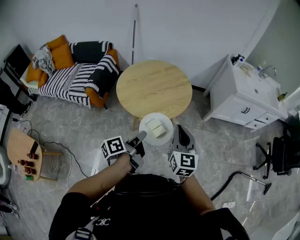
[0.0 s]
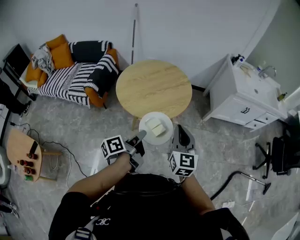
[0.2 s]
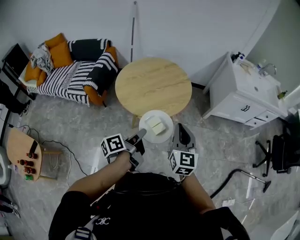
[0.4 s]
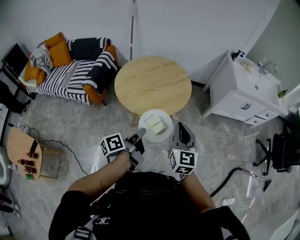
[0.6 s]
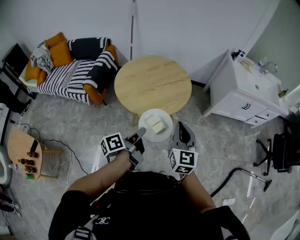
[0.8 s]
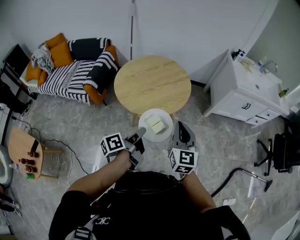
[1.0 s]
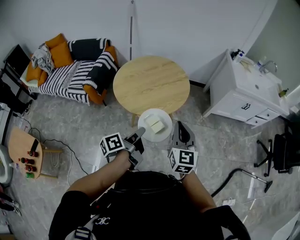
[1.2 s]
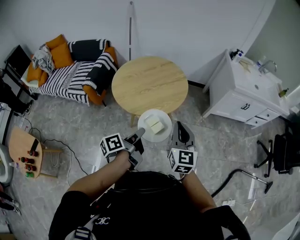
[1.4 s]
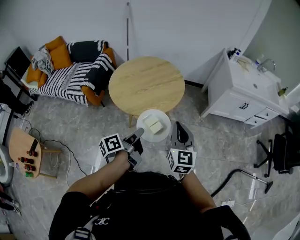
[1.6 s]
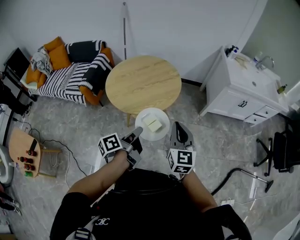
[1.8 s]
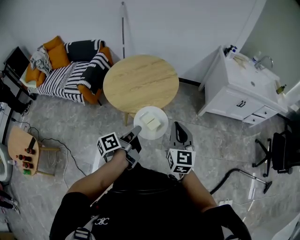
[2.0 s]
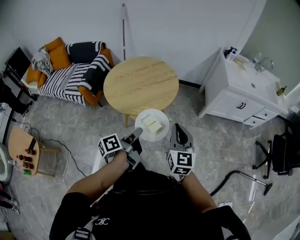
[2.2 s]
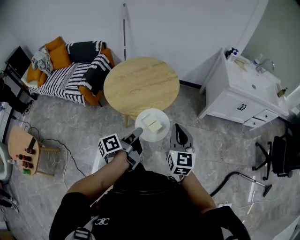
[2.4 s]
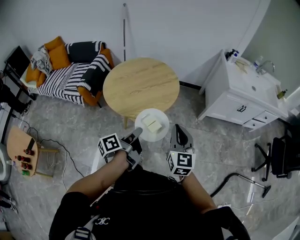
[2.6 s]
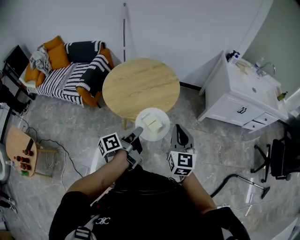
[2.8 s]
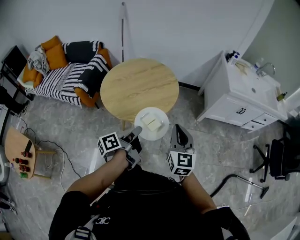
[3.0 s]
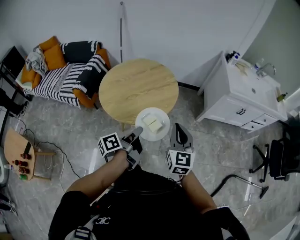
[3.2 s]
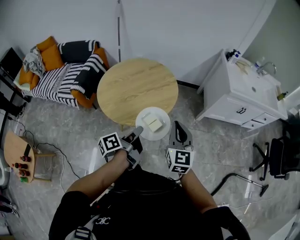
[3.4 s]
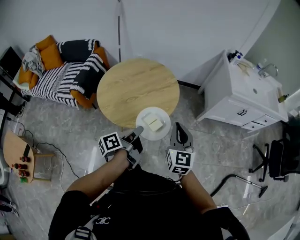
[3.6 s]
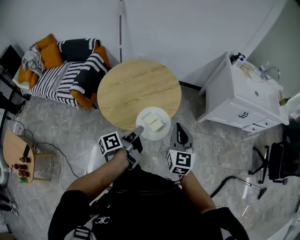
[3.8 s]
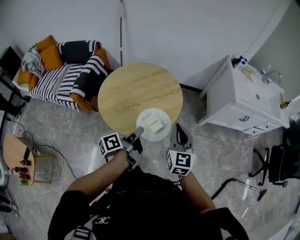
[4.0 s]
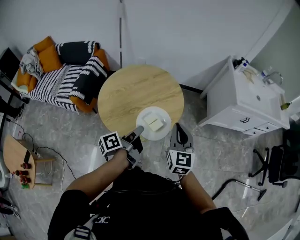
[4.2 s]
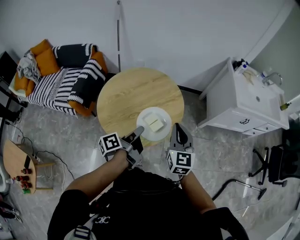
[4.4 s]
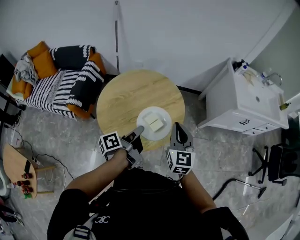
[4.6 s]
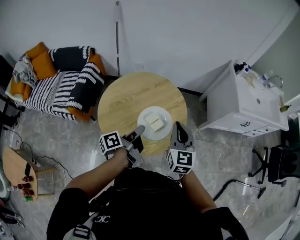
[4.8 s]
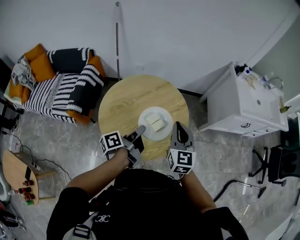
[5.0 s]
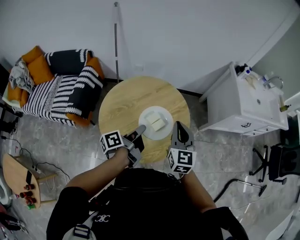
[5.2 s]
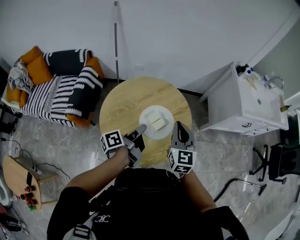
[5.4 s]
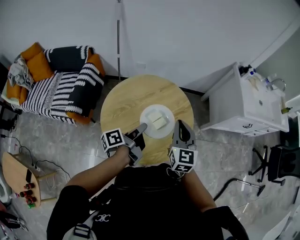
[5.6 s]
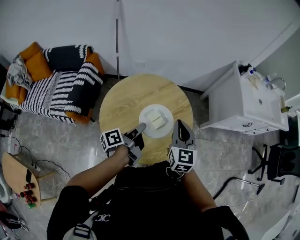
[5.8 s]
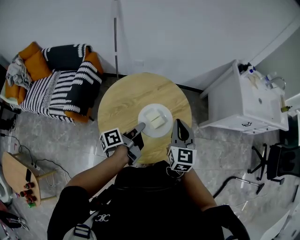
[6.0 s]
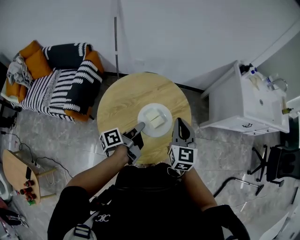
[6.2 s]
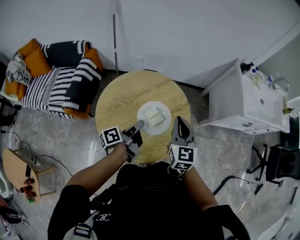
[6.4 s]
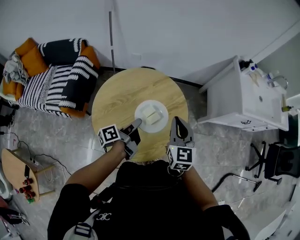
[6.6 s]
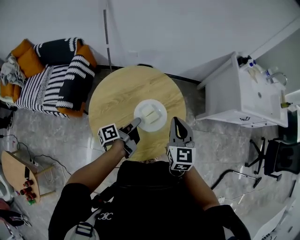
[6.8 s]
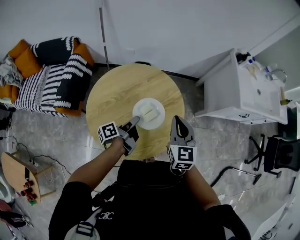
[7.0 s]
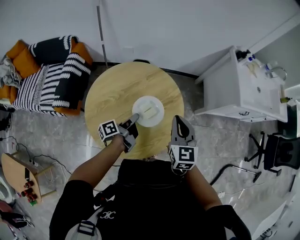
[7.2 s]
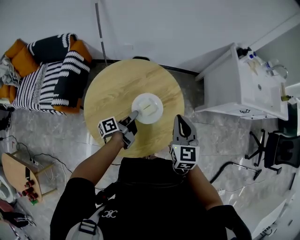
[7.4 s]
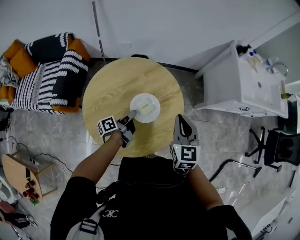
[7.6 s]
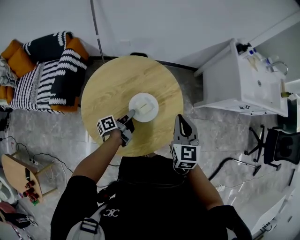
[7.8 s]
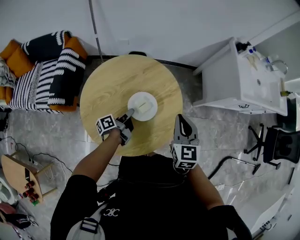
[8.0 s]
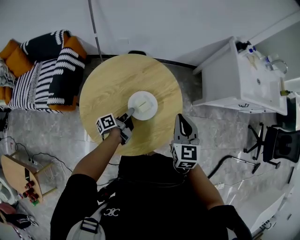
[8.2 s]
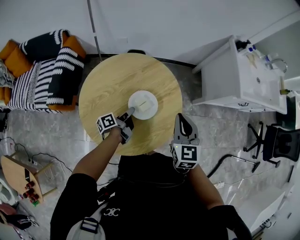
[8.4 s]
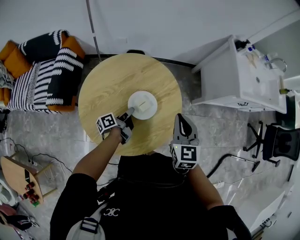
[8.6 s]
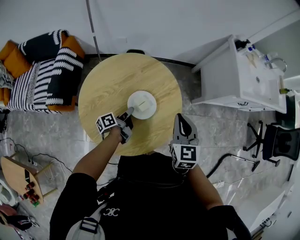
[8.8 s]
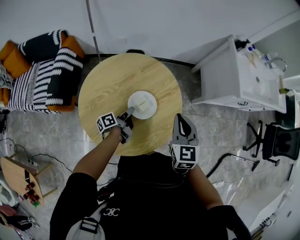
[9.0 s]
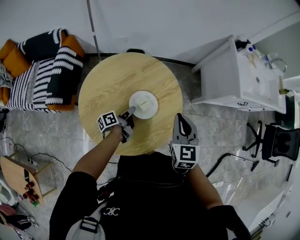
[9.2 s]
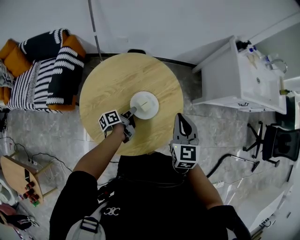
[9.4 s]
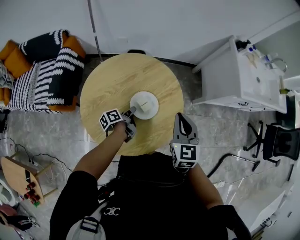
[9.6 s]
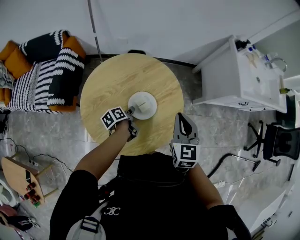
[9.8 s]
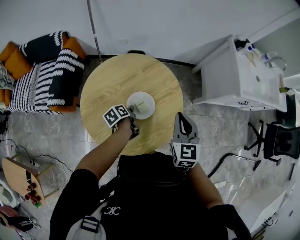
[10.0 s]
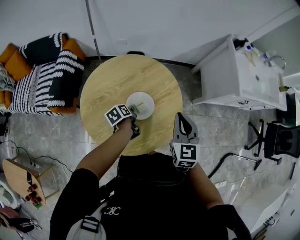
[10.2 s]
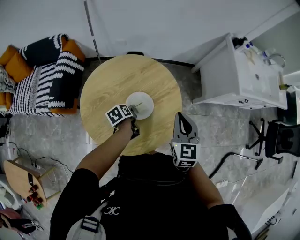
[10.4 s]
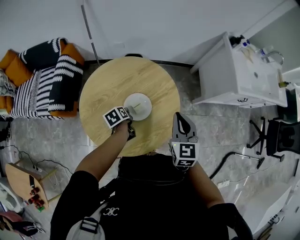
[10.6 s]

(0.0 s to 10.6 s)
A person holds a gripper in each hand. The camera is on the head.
0.0 s - 1.6 s: The right gripper shifts by roughly 5 cm.
1.6 s - 3.0 s: The right gripper moves approximately 5 cm.
3.0 s - 4.6 s: The right gripper shifts by about 20 cm.
4.6 s - 6.0 s: The right gripper changes place by about 10 cm.
6.0 s - 7.6 s: The right gripper moves approximately 5 cm.

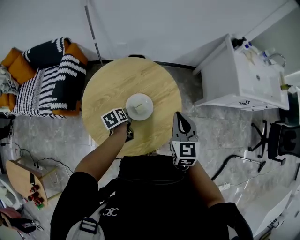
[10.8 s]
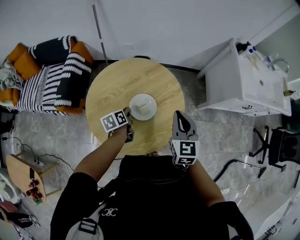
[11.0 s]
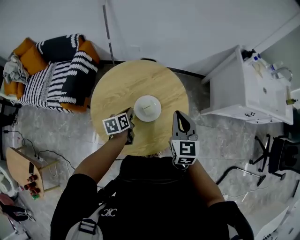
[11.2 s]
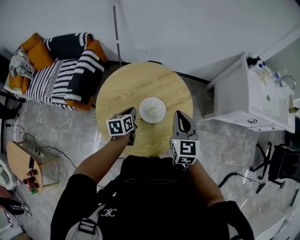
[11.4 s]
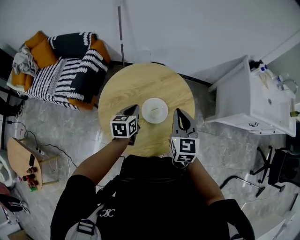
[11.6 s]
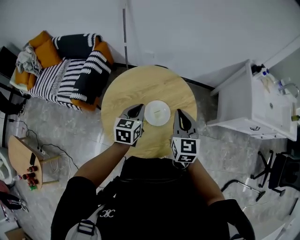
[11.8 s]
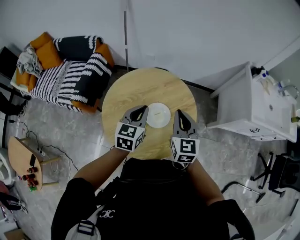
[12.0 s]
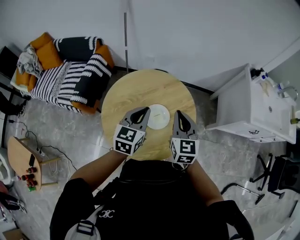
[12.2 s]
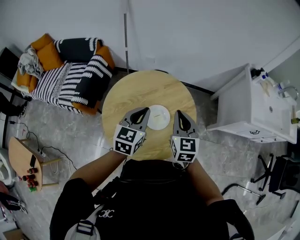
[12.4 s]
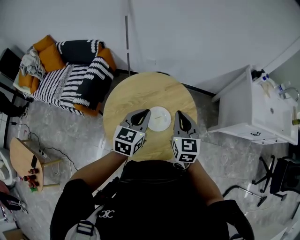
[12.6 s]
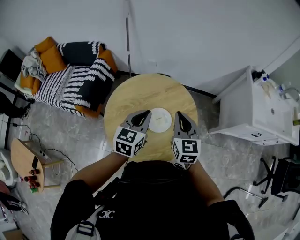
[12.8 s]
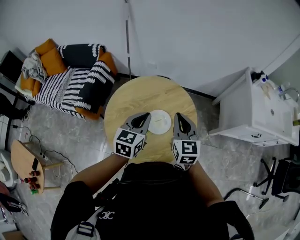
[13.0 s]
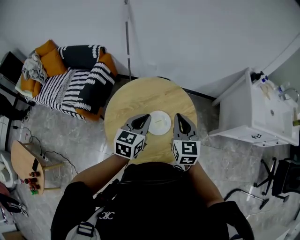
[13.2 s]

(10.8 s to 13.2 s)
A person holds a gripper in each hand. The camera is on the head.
10.8 s - 12.0 s: The right gripper changes place by about 10 cm.

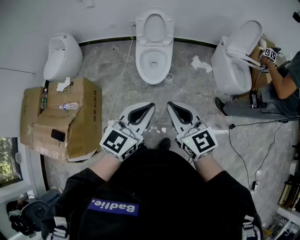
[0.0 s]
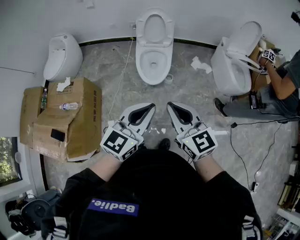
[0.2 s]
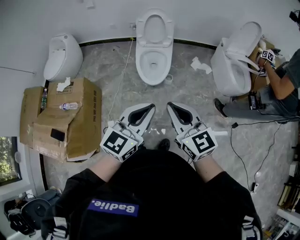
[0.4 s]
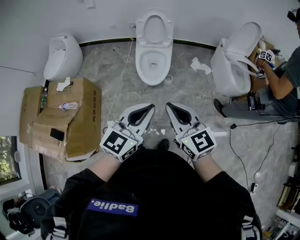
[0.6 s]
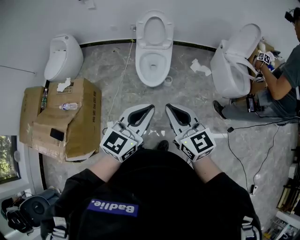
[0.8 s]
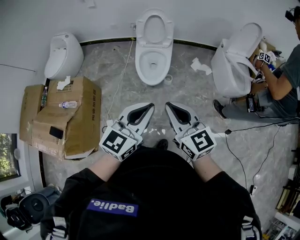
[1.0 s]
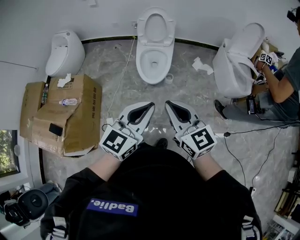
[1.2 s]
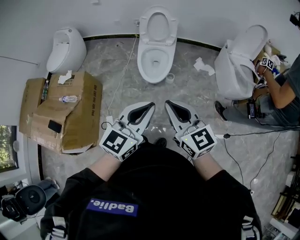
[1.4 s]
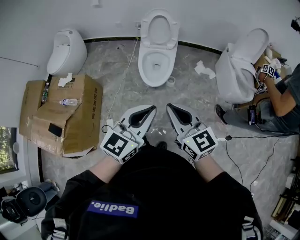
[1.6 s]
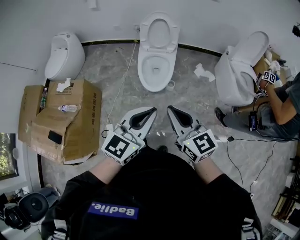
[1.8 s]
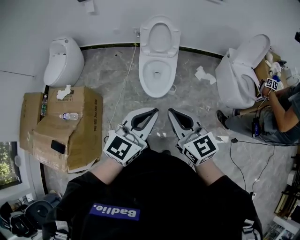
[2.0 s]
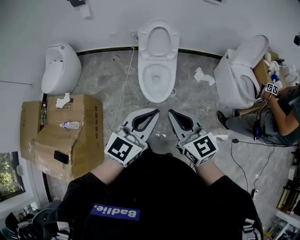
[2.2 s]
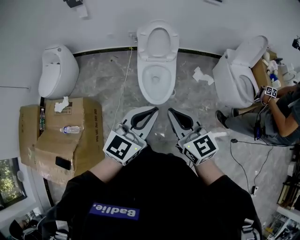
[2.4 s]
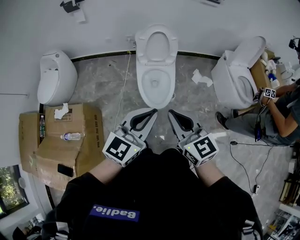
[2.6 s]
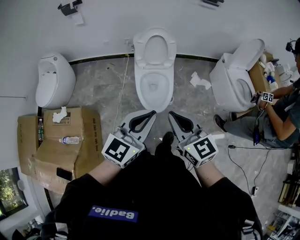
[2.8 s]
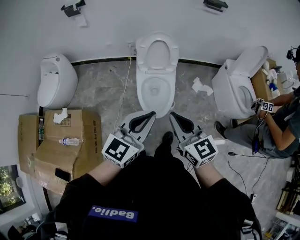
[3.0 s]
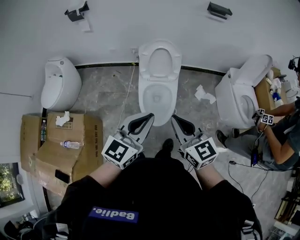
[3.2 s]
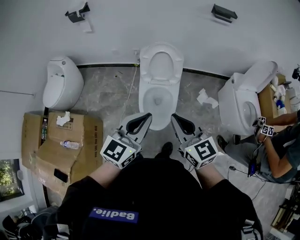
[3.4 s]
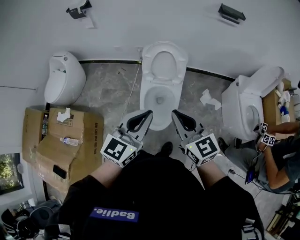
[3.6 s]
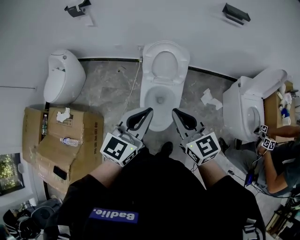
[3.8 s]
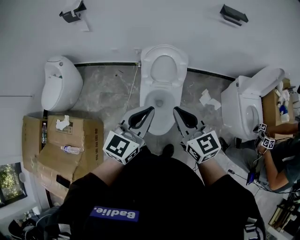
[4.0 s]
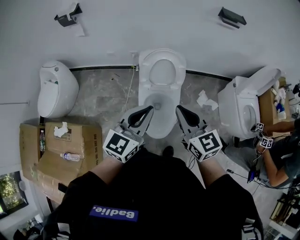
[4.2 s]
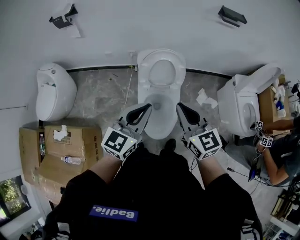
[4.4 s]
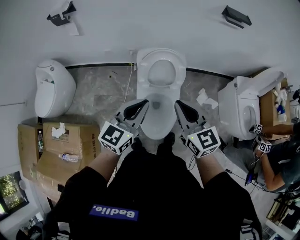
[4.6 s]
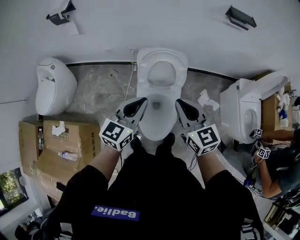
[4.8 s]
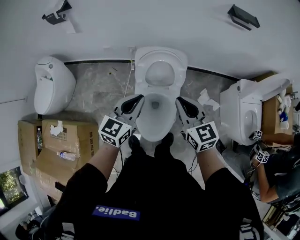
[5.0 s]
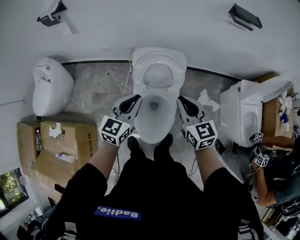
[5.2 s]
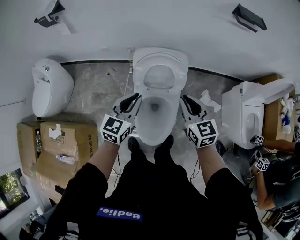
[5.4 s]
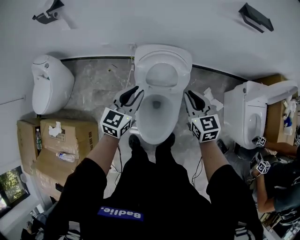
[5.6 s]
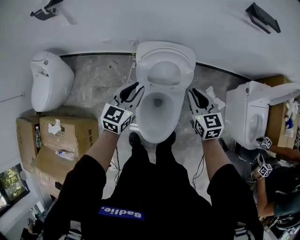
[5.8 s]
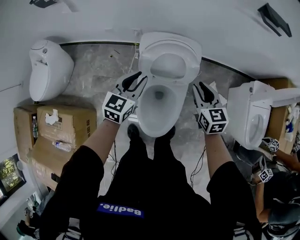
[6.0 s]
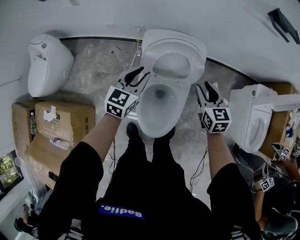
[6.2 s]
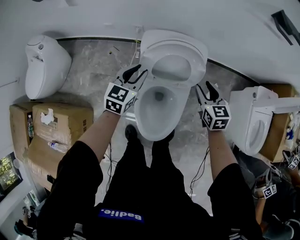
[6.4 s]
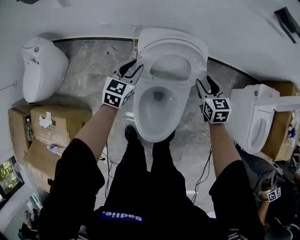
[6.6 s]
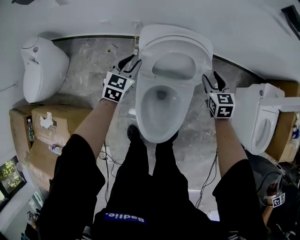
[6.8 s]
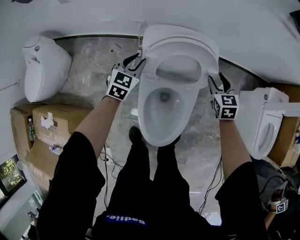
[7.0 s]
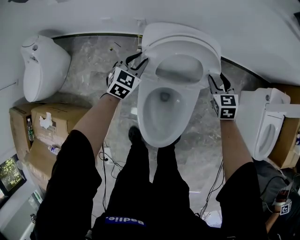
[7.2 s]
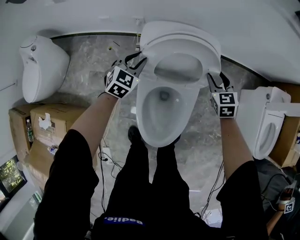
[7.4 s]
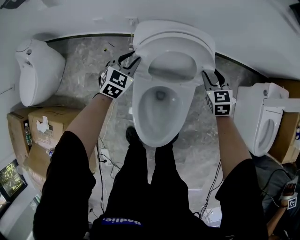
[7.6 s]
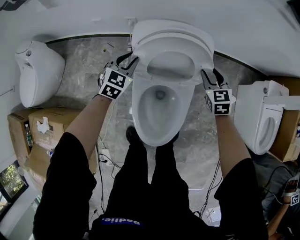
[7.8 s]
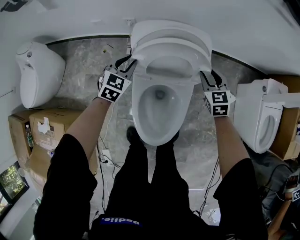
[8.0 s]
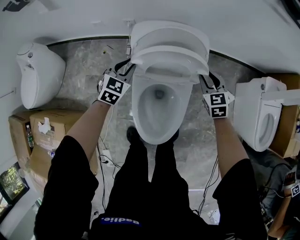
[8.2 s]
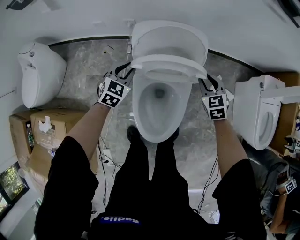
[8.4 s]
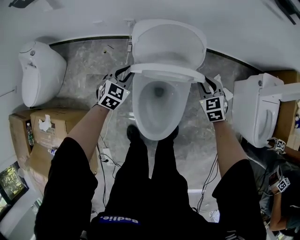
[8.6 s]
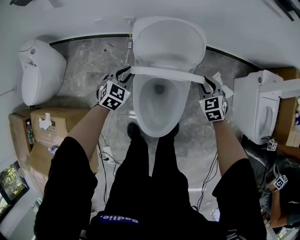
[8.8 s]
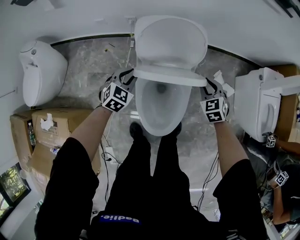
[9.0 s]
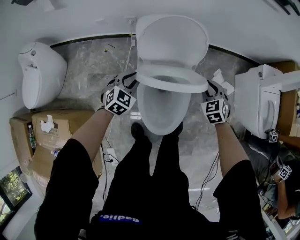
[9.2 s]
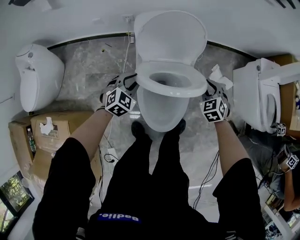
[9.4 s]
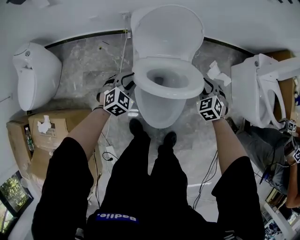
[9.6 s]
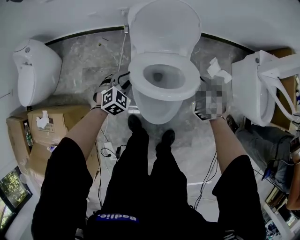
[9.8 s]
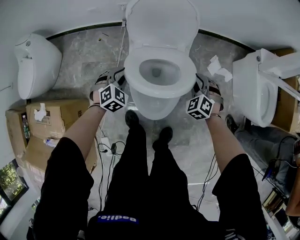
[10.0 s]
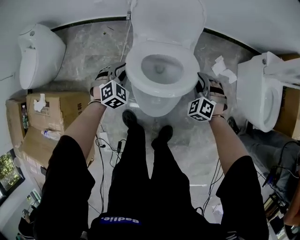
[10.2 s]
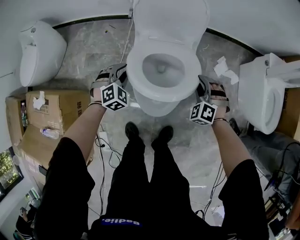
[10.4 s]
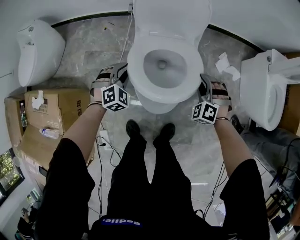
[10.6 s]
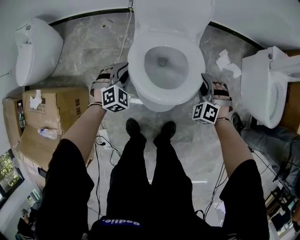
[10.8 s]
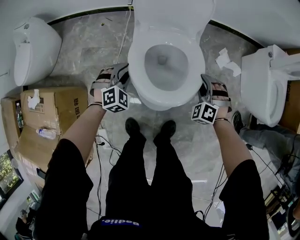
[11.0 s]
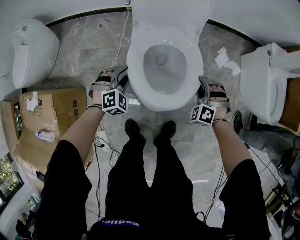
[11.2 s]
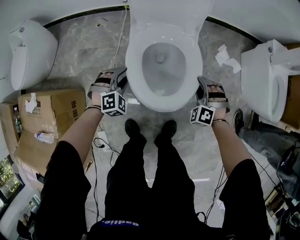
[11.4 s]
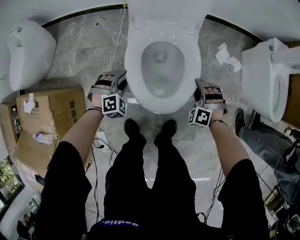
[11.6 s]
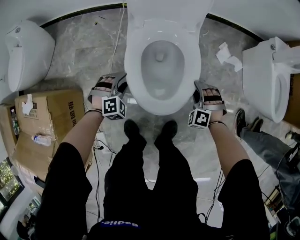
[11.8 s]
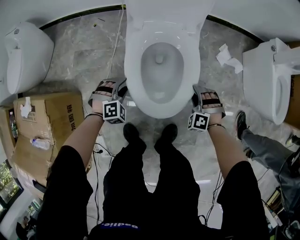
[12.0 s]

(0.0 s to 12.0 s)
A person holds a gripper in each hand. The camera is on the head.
0.0 s - 1.6 s: The grippers stay close to where they were, moving slightly.
1.6 s - 3.0 s: The left gripper is displaced forward and to the left by roughly 25 cm. The right gripper moves forward, some 20 cm.
3.0 s - 4.4 s: The two grippers go approximately 25 cm forward.
4.4 s - 6.0 s: The left gripper travels forward and downward by approximately 30 cm, while the right gripper shifts approximately 30 cm downward, forward and to the right.
6.0 s - 7.6 s: The two grippers go about 20 cm downward and forward. The left gripper rotates about 30 degrees. Meanwhile the right gripper opens.
7.6 s - 9.0 s: Both grippers move backward, roughly 15 cm.
9.0 s - 10.4 s: Both grippers move backward and downward, about 15 cm. The left gripper swivels about 30 degrees. Meanwhile the right gripper twists some 40 degrees counterclockwise, seen from behind.
10.4 s - 12.0 s: The grippers both shift downward and backward by some 20 cm.
